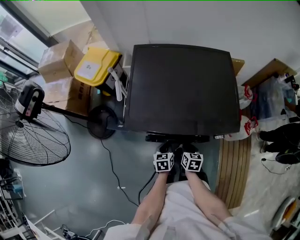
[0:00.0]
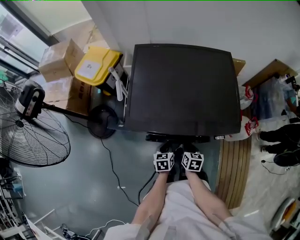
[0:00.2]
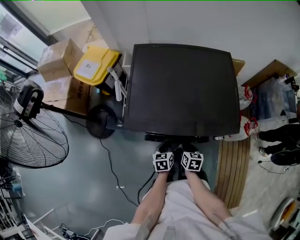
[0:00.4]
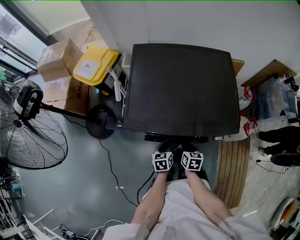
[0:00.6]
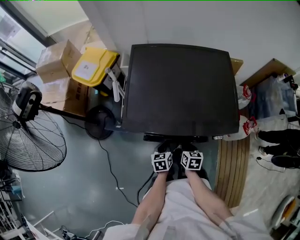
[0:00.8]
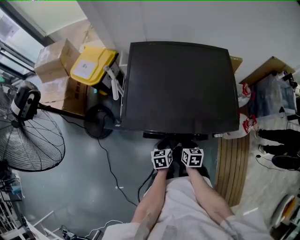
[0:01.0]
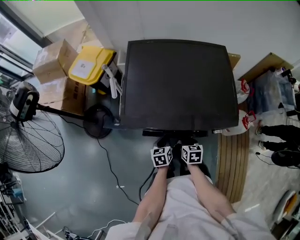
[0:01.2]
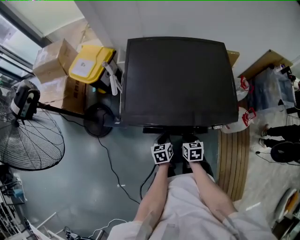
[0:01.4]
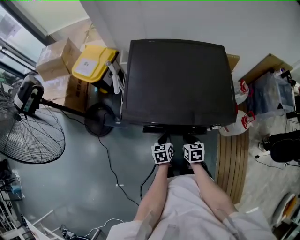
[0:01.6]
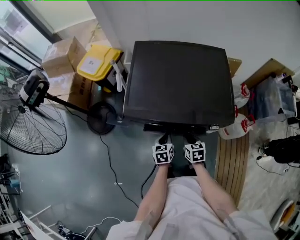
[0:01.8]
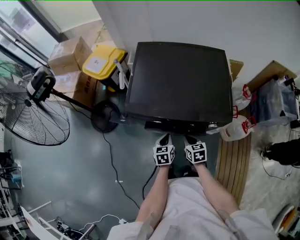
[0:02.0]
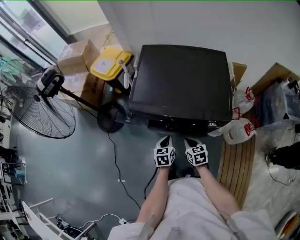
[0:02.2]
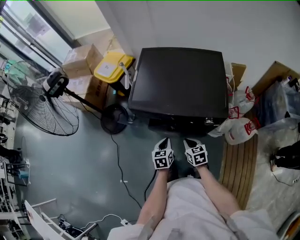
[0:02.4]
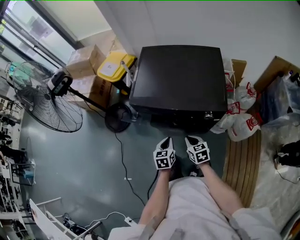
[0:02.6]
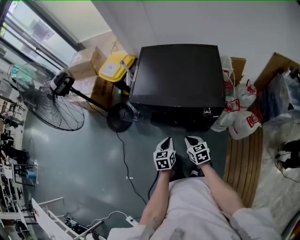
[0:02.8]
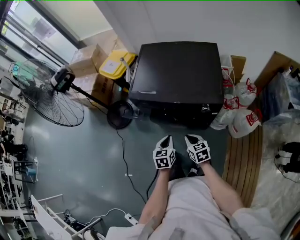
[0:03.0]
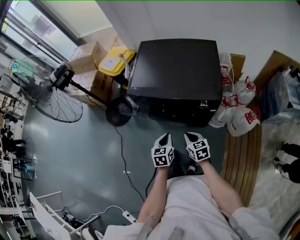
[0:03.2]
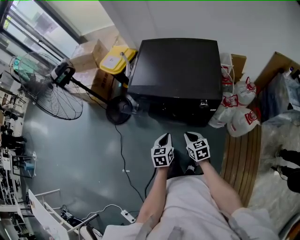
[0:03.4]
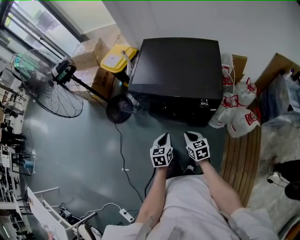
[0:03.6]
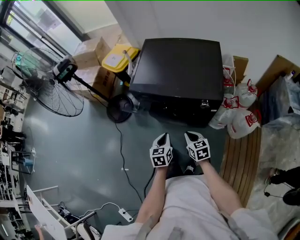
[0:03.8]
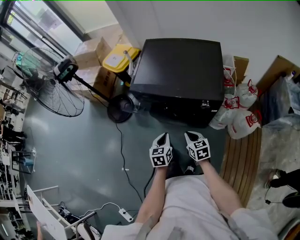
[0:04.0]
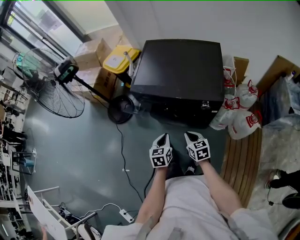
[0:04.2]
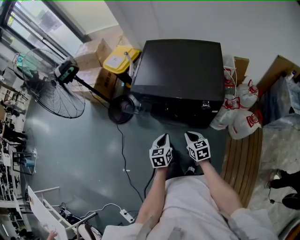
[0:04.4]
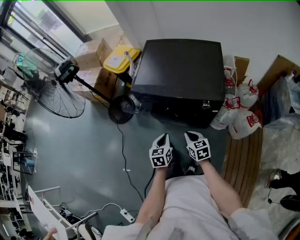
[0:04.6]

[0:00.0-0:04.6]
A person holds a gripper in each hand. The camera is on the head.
0:00.0 to 0:01.6: The grippers make only small movements.
0:01.6 to 0:03.0: The two grippers go roughly 20 cm backward and upward. The right gripper swivels some 30 degrees.
0:03.0 to 0:04.6: The grippers make only small movements.

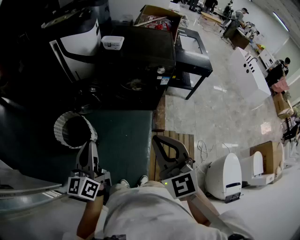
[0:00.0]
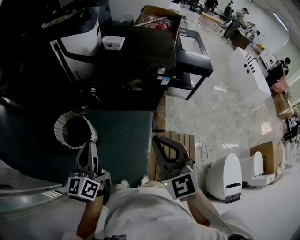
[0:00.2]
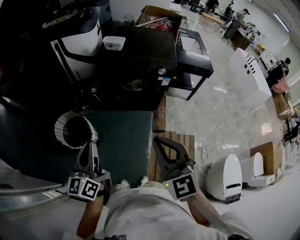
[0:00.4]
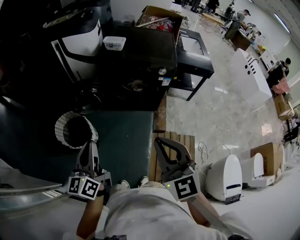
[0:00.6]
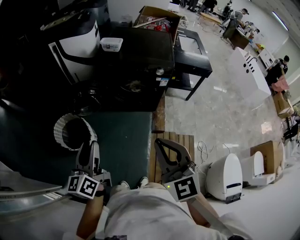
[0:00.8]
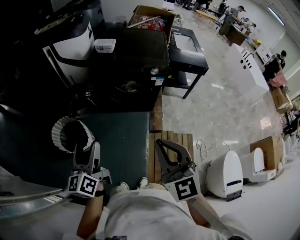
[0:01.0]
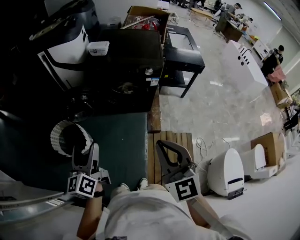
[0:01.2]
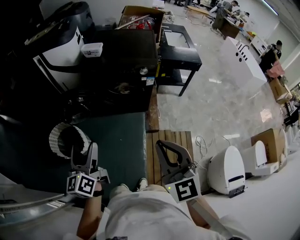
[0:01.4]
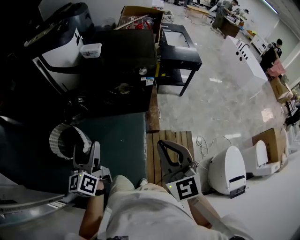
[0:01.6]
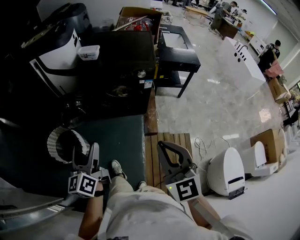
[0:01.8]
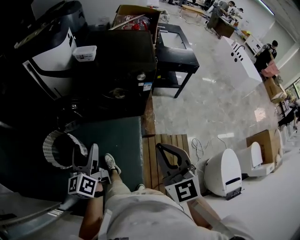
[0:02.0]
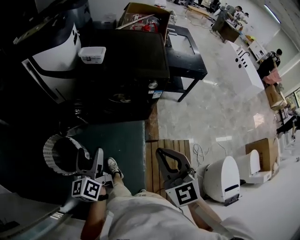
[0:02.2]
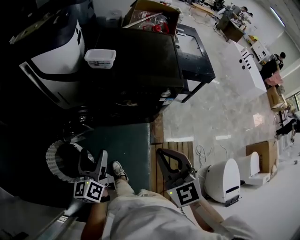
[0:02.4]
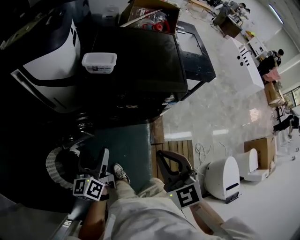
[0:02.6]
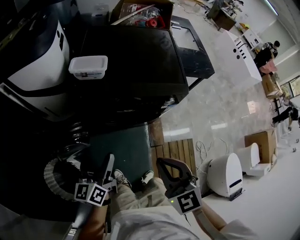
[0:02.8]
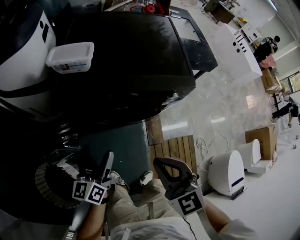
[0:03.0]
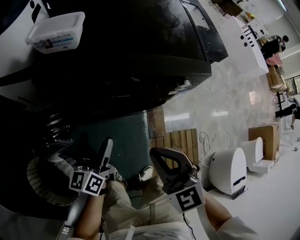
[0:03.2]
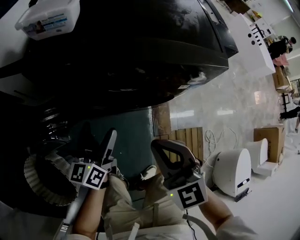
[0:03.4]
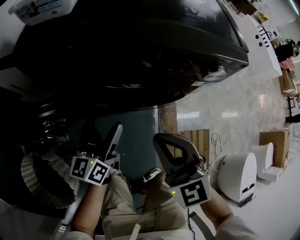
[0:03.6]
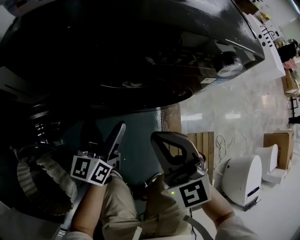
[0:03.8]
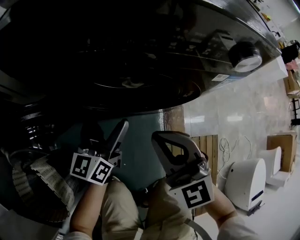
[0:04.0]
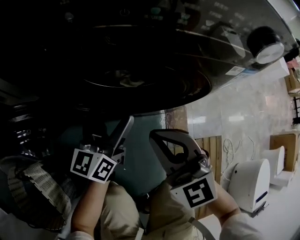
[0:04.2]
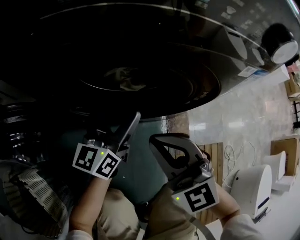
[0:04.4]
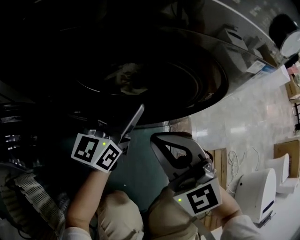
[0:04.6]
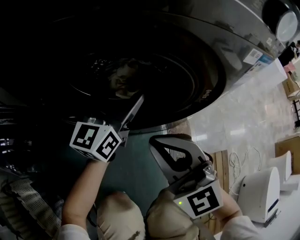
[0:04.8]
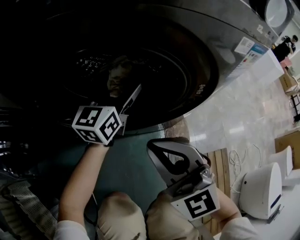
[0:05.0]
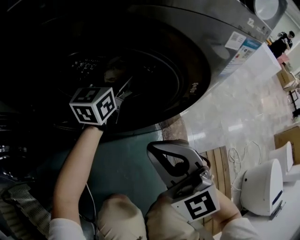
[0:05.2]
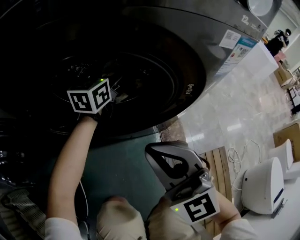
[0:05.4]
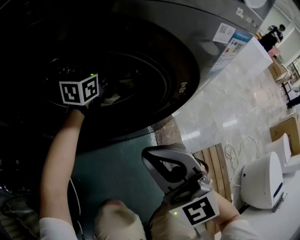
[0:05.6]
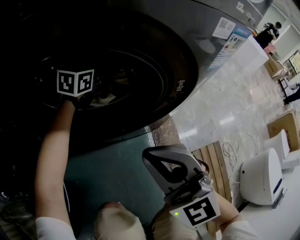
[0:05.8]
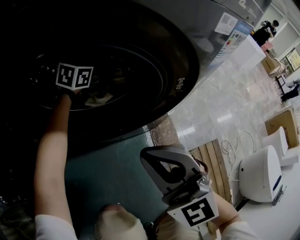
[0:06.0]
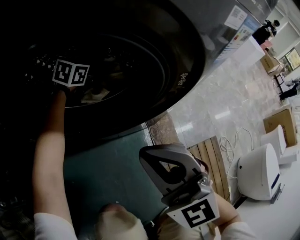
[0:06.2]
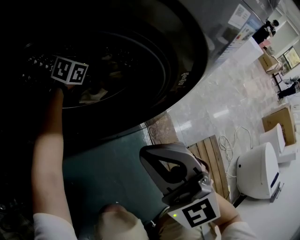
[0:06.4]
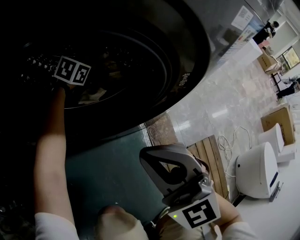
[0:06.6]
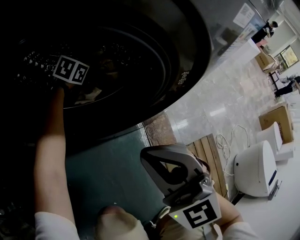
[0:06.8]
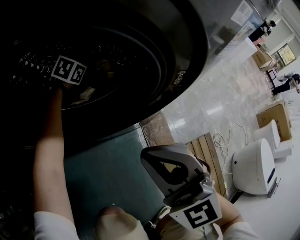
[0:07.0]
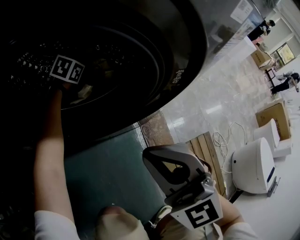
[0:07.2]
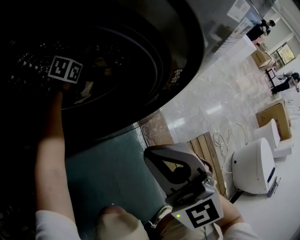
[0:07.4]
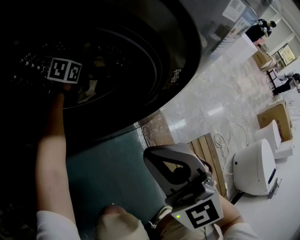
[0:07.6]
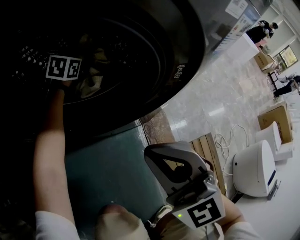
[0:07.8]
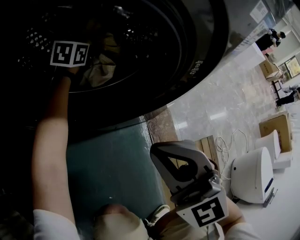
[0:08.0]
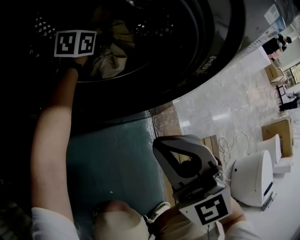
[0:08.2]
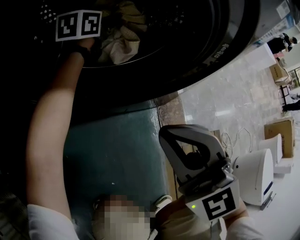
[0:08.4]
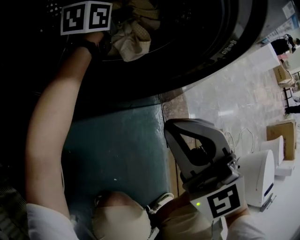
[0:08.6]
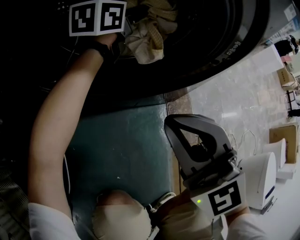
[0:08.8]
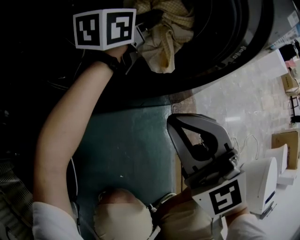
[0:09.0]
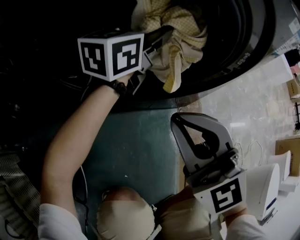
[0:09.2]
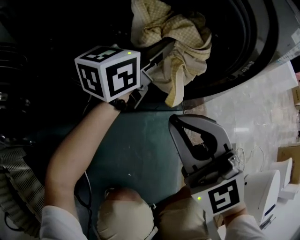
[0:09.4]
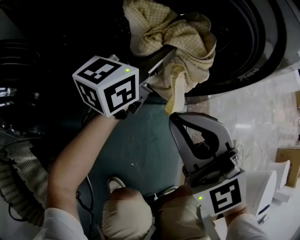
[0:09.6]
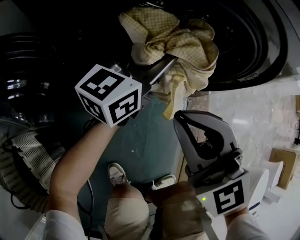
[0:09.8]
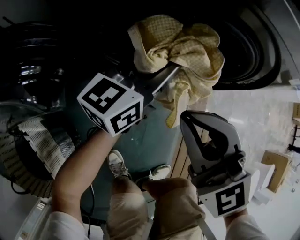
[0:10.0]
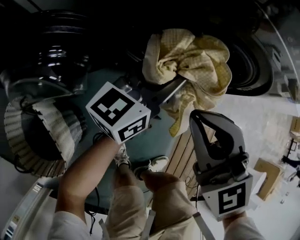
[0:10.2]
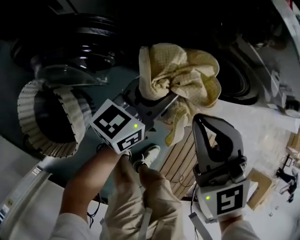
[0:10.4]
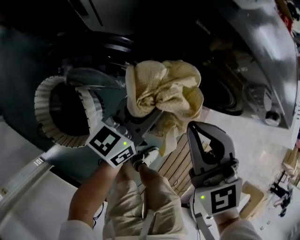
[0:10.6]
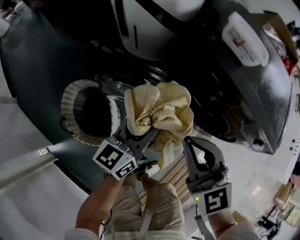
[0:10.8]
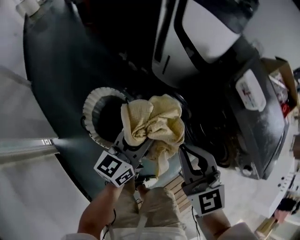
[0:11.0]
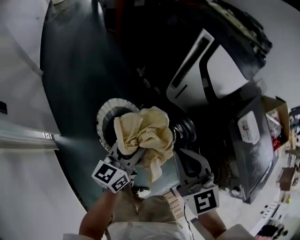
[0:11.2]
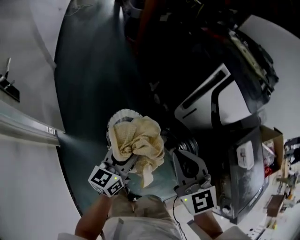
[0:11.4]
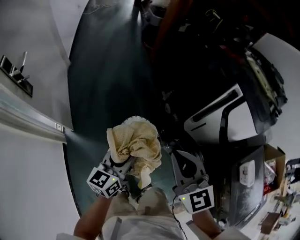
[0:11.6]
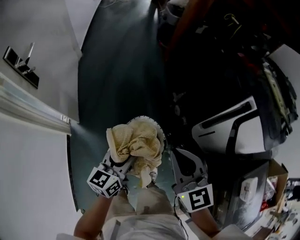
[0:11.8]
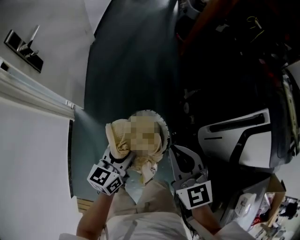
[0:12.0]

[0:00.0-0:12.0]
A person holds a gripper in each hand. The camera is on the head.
0:00.0 to 0:01.6: Both grippers travel together to the right, roughly 10 cm. The left gripper opens its fingers.
0:01.6 to 0:03.0: The two grippers travel together, forward, roughly 40 cm. The grippers both shift downward by some 20 cm. The left gripper swivels approximately 20 degrees.
0:03.0 to 0:04.4: The right gripper moves downward, about 35 cm. Meanwhile the left gripper shifts about 40 cm downward and forward.
0:04.4 to 0:06.0: The left gripper is displaced forward and downward by roughly 30 cm, and points its fingers approximately 30 degrees further downward, while the right gripper shifts approximately 5 cm downward.
0:06.0 to 0:07.6: The left gripper shifts about 10 cm downward, and closes.
0:07.6 to 0:09.0: The left gripper is displaced upward and backward by roughly 25 cm, and angles its fingers upward, by about 40 degrees. Meanwhile the right gripper travels to the left by roughly 5 cm.
0:09.0 to 0:10.4: The right gripper moves upward and to the left, some 15 cm, and swivels roughly 20 degrees. Meanwhile the left gripper shifts roughly 20 cm backward and to the left, and turns by about 20 degrees.
0:10.4 to 0:12.0: The right gripper moves up and down over some 15 cm, changing direction 2 times, and rotates roughly 30 degrees, while the left gripper goes upward and returns, roughly 10 cm each way, and rotates approximately 50 degrees.

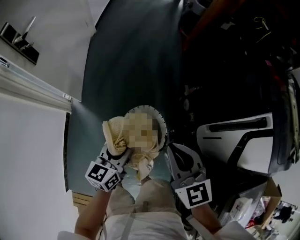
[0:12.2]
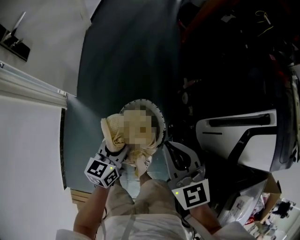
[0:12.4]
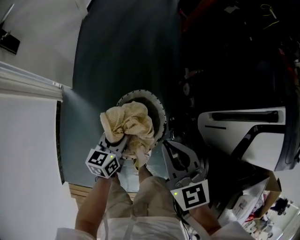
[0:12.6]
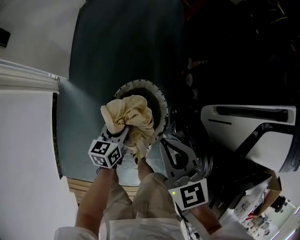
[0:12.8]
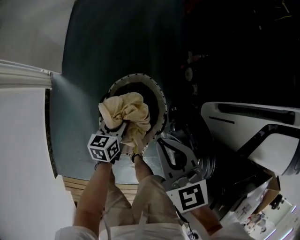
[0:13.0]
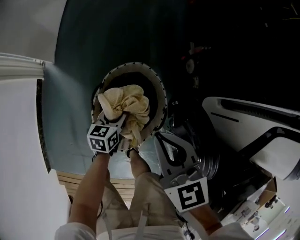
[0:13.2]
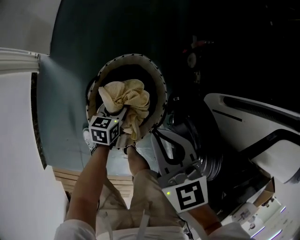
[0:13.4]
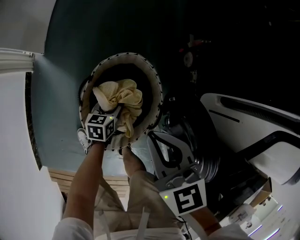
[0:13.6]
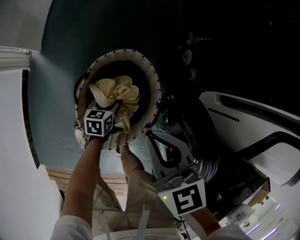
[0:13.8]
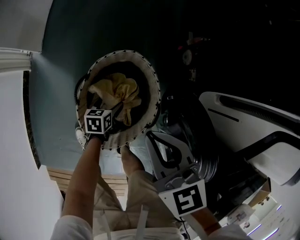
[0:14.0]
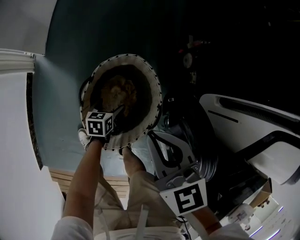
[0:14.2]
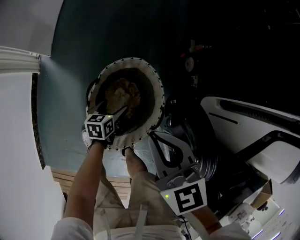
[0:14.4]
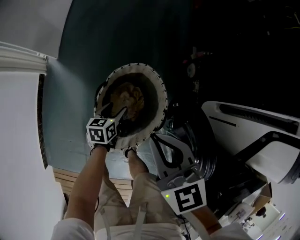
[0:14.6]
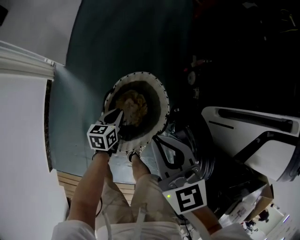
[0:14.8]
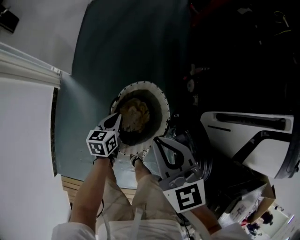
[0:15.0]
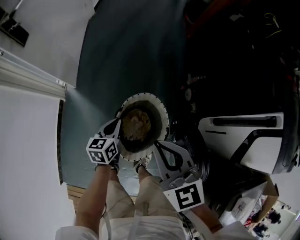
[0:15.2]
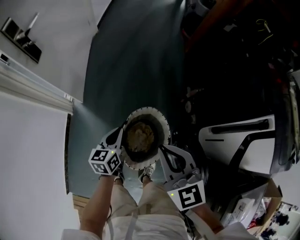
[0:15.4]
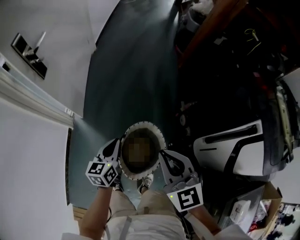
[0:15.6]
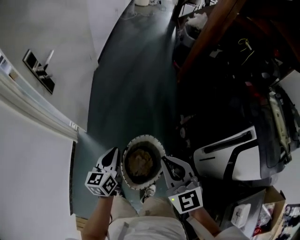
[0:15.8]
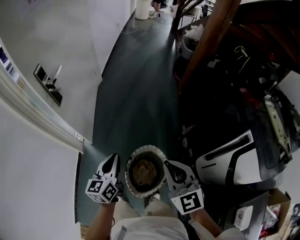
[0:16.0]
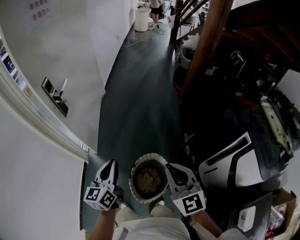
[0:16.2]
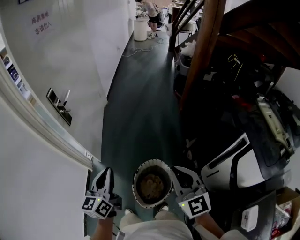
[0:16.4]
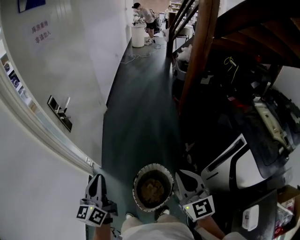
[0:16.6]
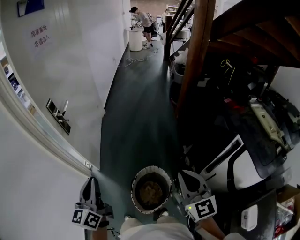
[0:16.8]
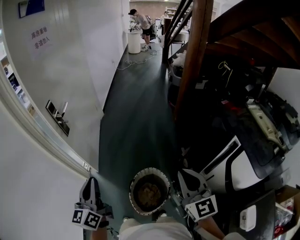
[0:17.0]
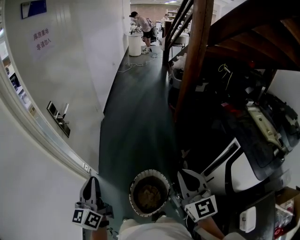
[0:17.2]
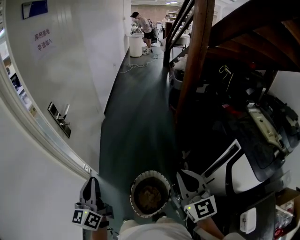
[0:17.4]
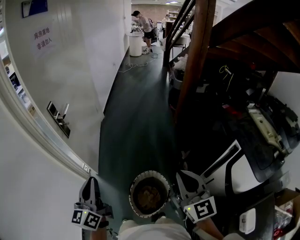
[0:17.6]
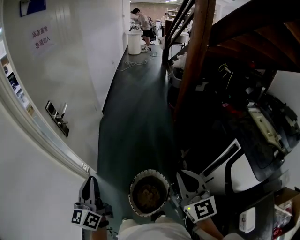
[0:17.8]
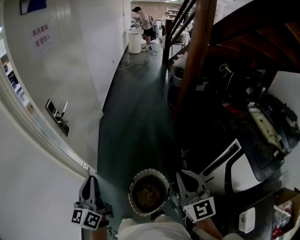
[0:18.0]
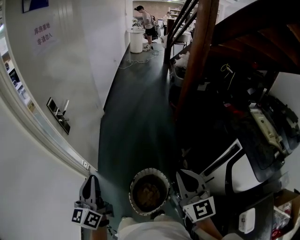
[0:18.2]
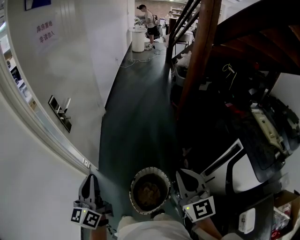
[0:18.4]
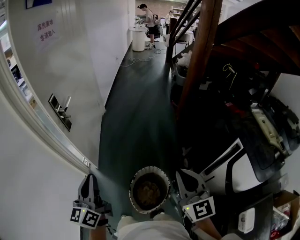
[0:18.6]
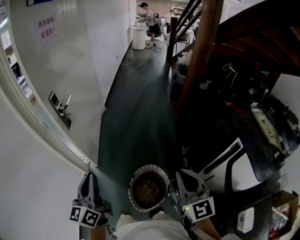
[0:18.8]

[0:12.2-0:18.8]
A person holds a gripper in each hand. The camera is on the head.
0:12.2 to 0:13.8: The left gripper moves downward, about 50 cm, and tilts its fingers approximately 30 degrees downward; the right gripper moves downward, some 25 cm.
0:13.8 to 0:15.4: Both grippers travel together upward, roughly 30 cm. The left gripper rotates roughly 30 degrees, and closes.
0:15.4 to 0:17.2: The left gripper is displaced upward by some 40 cm, and tilts its fingers roughly 30 degrees upward; the right gripper goes about 25 cm upward and to the right, and rotates about 20 degrees.
0:17.2 to 0:18.8: The grippers make only small movements.
